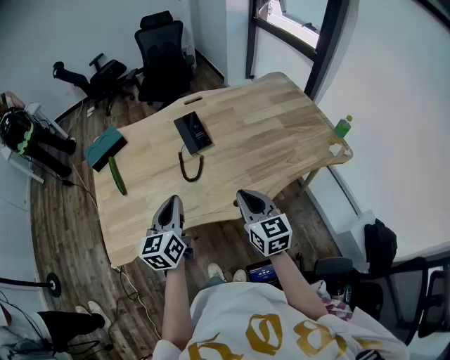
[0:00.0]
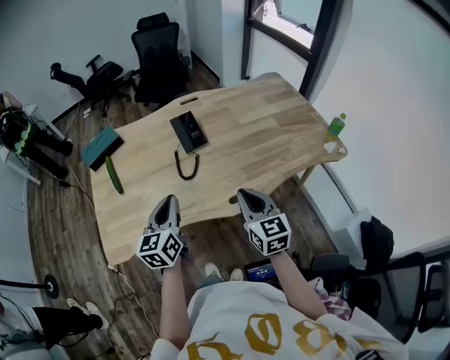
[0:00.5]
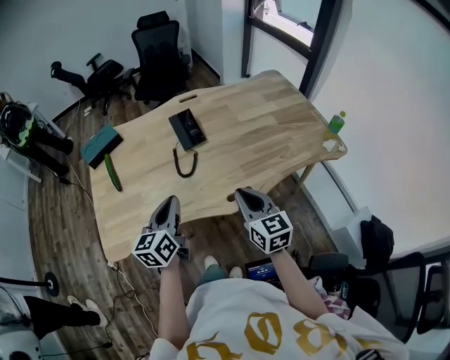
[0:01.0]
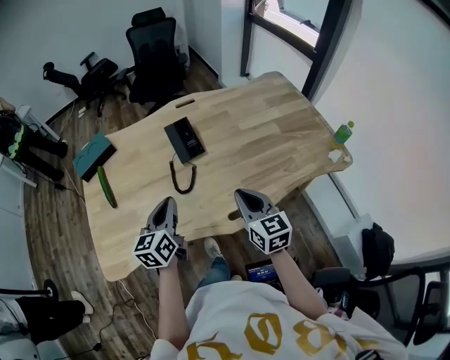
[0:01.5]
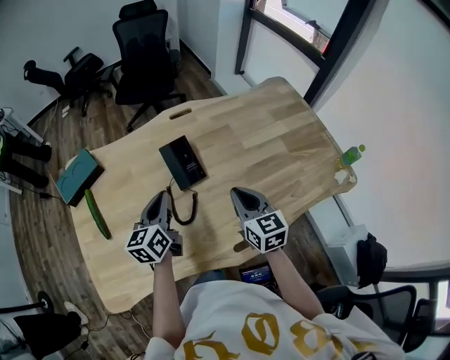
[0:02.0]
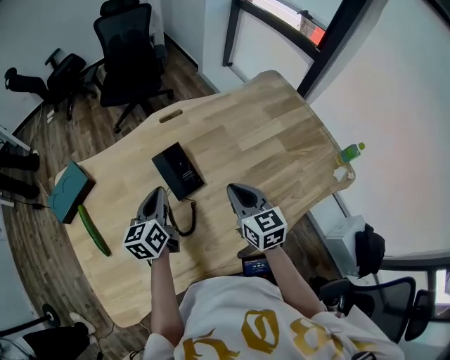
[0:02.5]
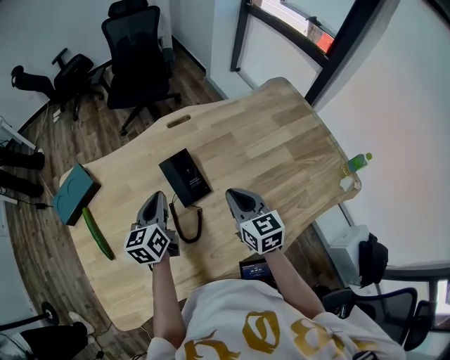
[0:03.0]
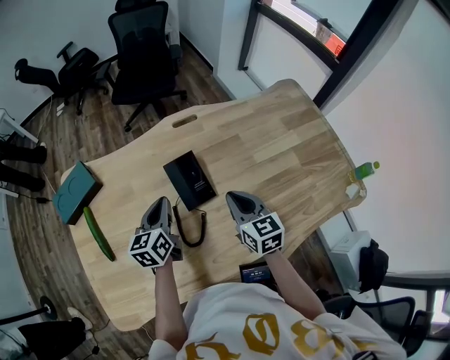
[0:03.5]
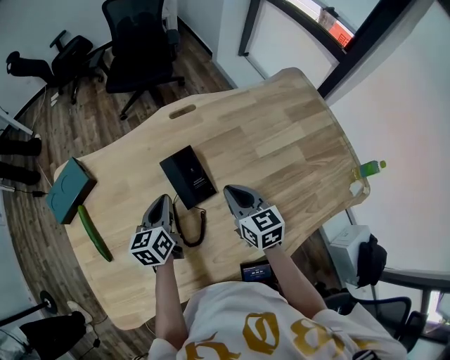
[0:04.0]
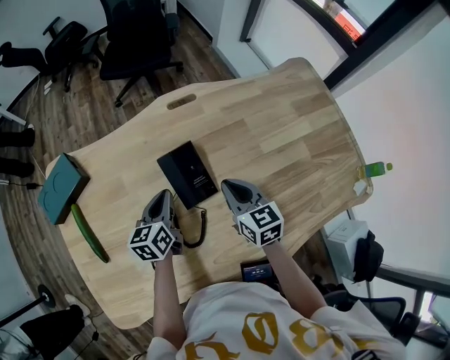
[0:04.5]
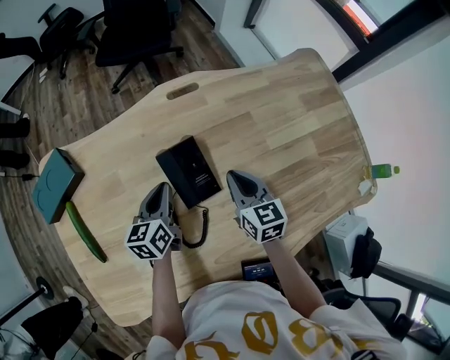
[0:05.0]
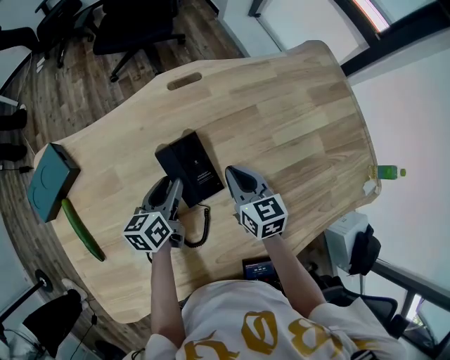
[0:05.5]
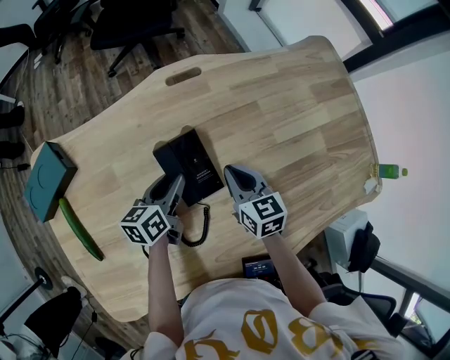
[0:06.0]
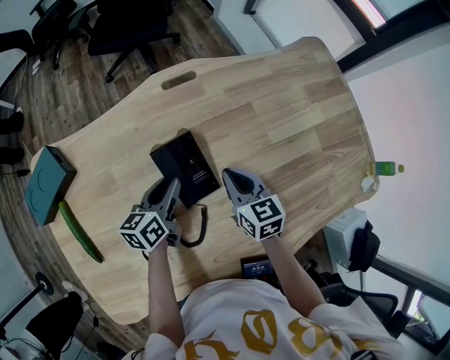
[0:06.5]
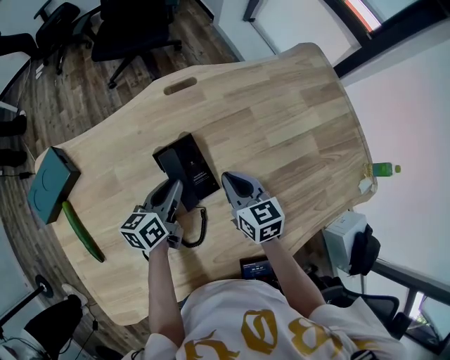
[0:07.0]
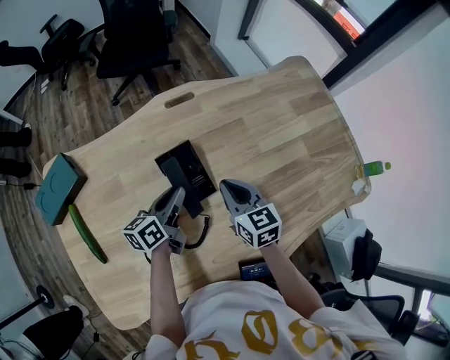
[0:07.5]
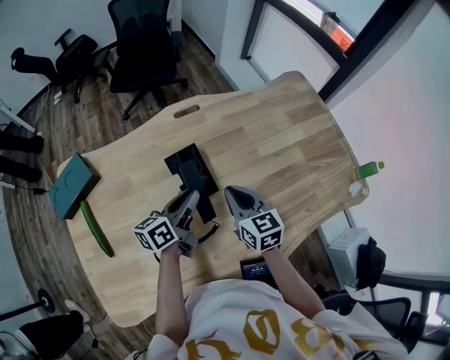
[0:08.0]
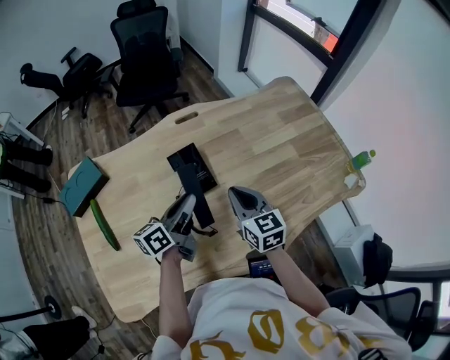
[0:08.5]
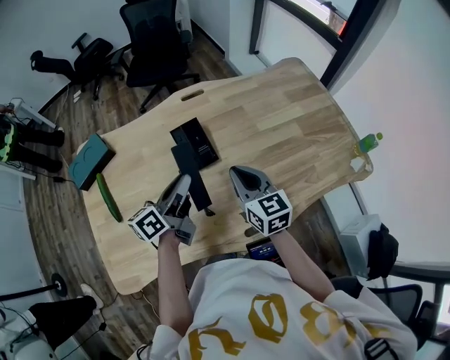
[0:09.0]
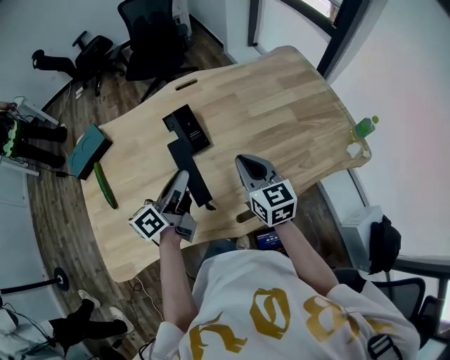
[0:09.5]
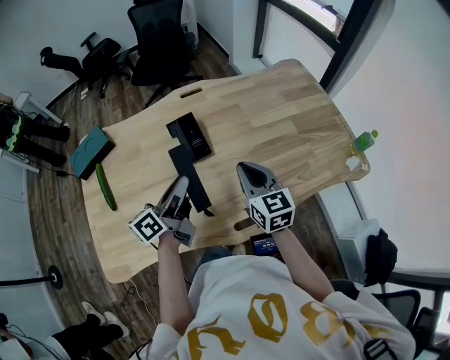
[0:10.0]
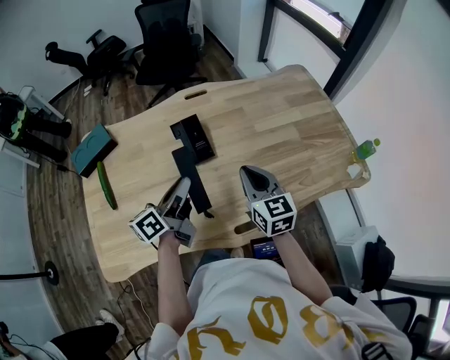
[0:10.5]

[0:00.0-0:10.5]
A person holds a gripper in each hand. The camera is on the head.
0:00.0 to 0:02.0: The two grippers go approximately 20 cm forward.
0:02.0 to 0:04.0: Both grippers travel together forward and downward, about 10 cm.
0:04.0 to 0:06.5: The two grippers go approximately 5 cm downward. The left gripper opens.
0:06.5 to 0:08.5: Both grippers move upward and backward, about 15 cm. The left gripper swivels approximately 20 degrees.
0:08.5 to 0:10.5: The right gripper shifts about 5 cm to the right; the left gripper moves backward, some 5 cm.

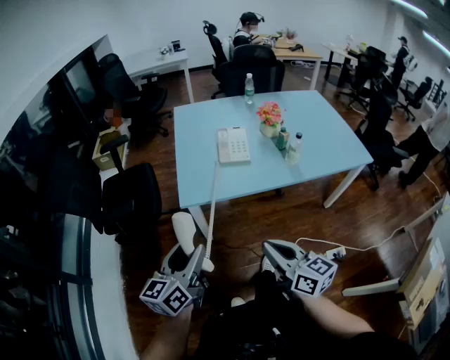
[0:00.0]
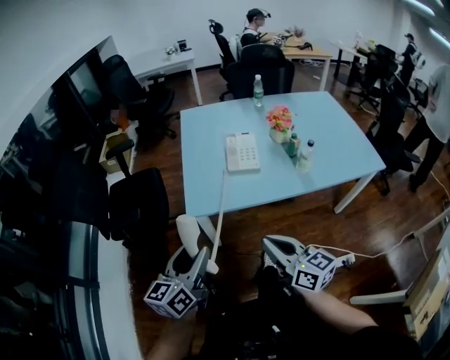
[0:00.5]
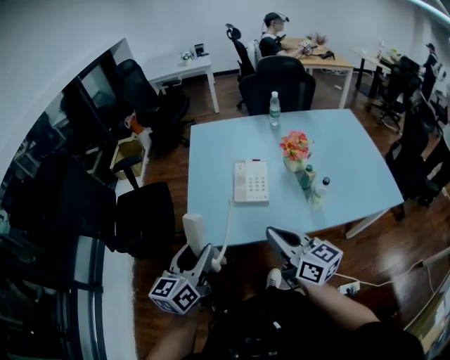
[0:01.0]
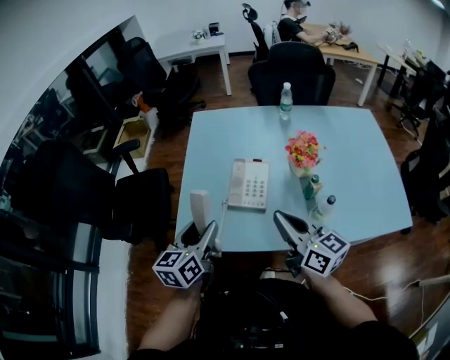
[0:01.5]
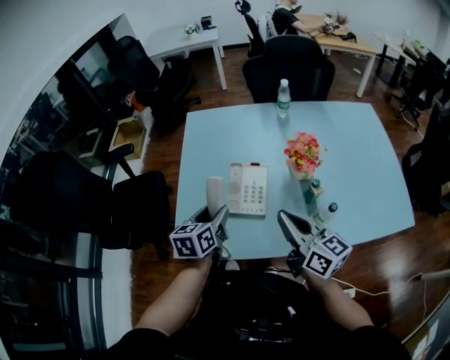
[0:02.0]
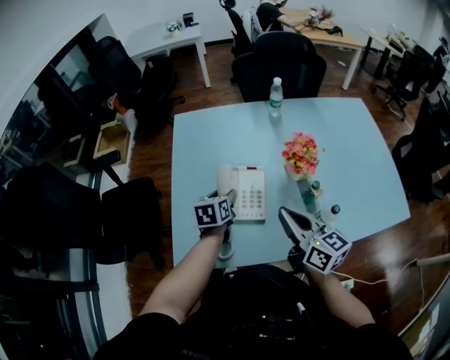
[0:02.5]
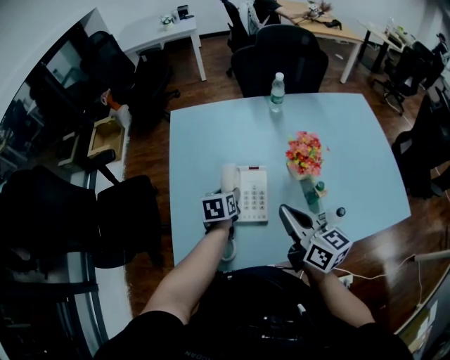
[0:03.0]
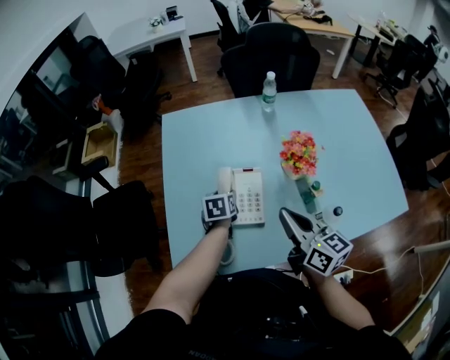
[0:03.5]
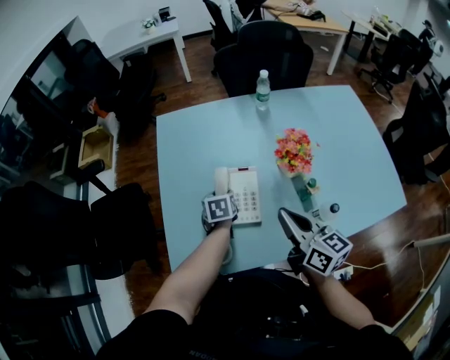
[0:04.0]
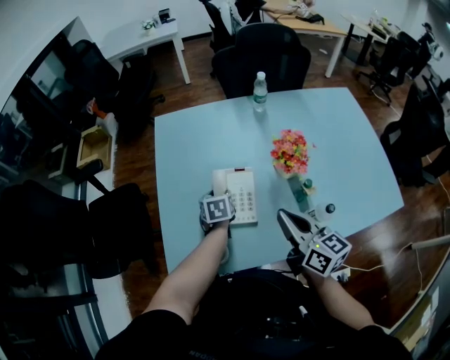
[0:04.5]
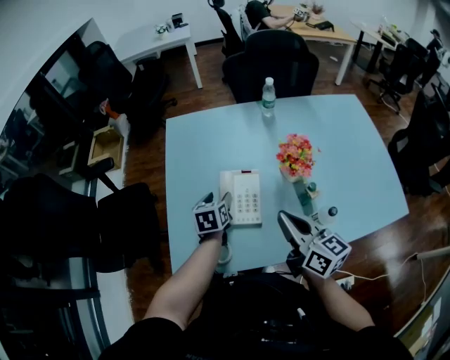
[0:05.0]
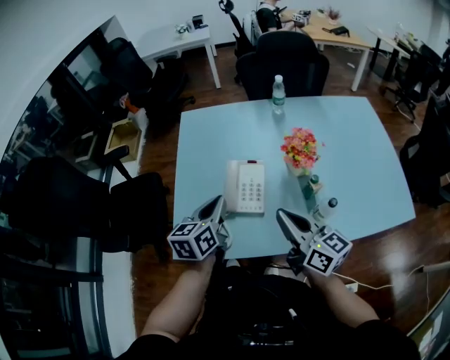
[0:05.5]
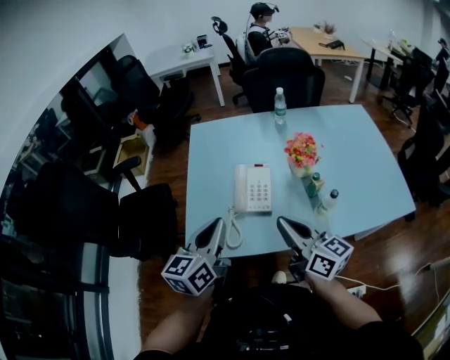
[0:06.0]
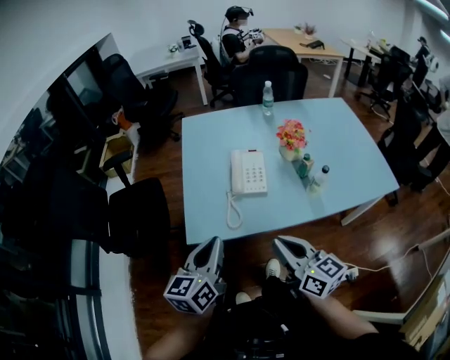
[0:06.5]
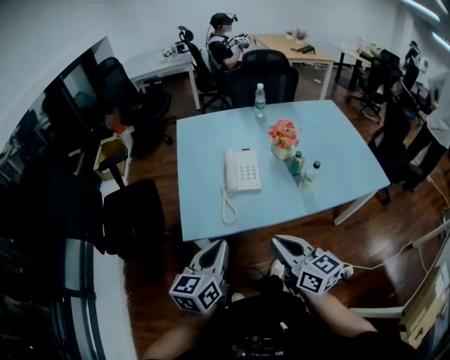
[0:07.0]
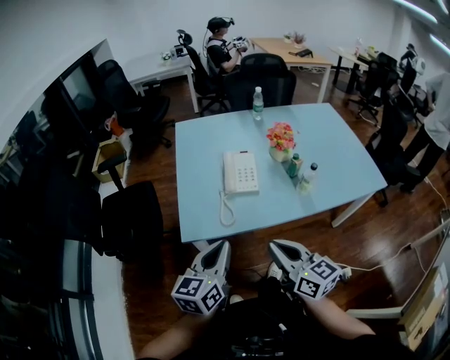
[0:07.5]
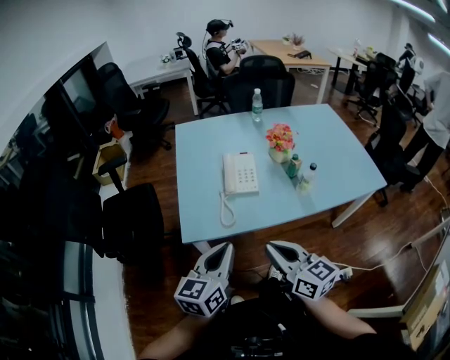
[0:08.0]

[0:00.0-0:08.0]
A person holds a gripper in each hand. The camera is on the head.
0:00.0 to 0:02.0: The pair of grippers is taken forward and to the right, approximately 40 cm. The left gripper swivels about 30 degrees.
0:02.0 to 0:04.0: The left gripper shifts roughly 20 cm downward and forward, and swivels some 20 degrees. Meanwhile the right gripper heads forward, covering about 5 cm.
0:04.0 to 0:06.0: The left gripper travels upward and backward by about 35 cm, points its fingers roughly 40 degrees further upward, and closes up. Meanwhile the right gripper travels backward by approximately 10 cm.
0:06.0 to 0:08.0: The left gripper heads backward, covering about 15 cm; the right gripper shifts some 20 cm backward and to the left.

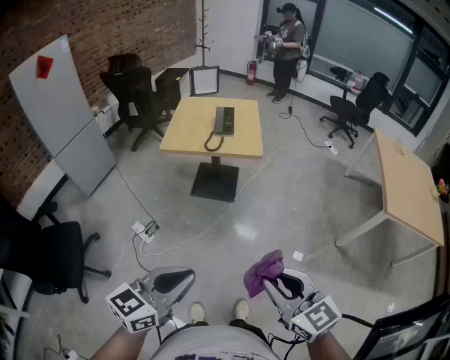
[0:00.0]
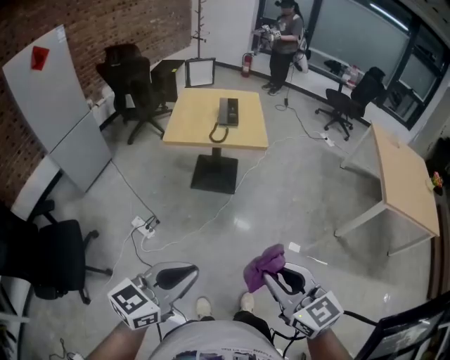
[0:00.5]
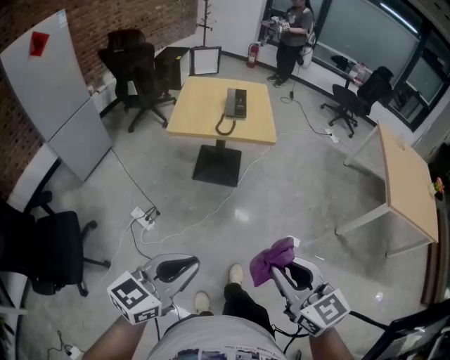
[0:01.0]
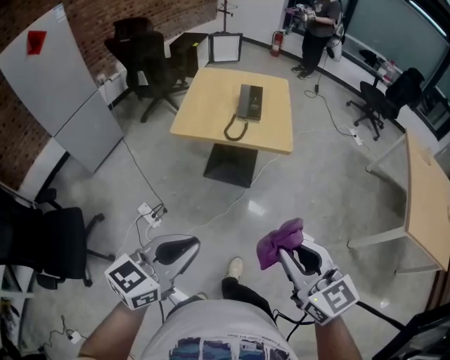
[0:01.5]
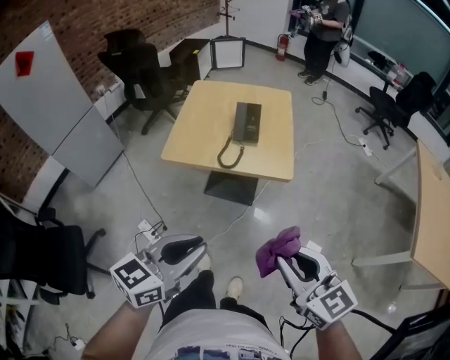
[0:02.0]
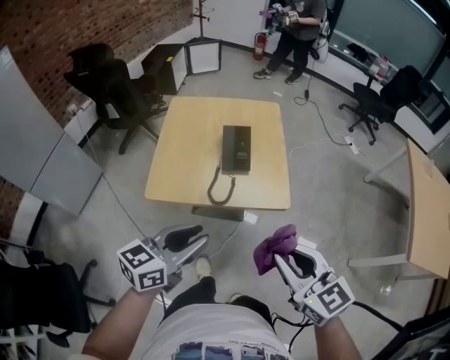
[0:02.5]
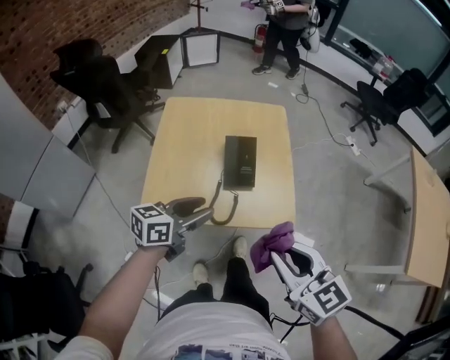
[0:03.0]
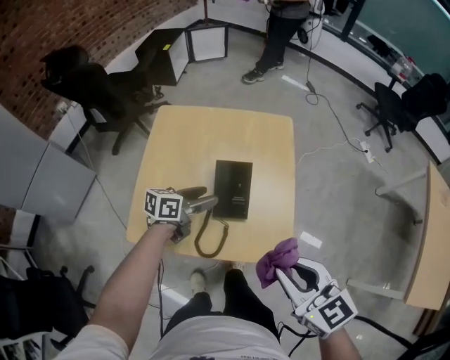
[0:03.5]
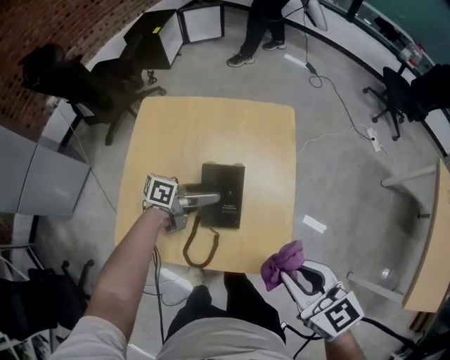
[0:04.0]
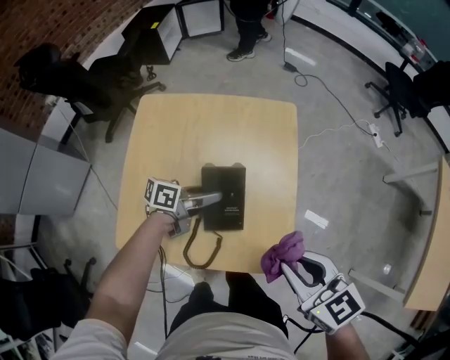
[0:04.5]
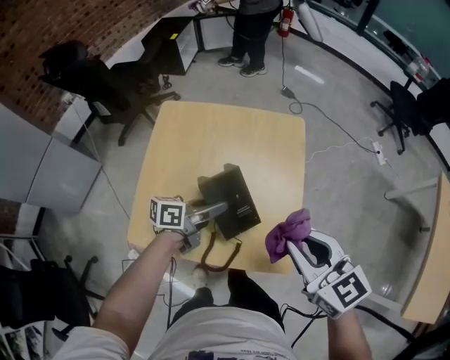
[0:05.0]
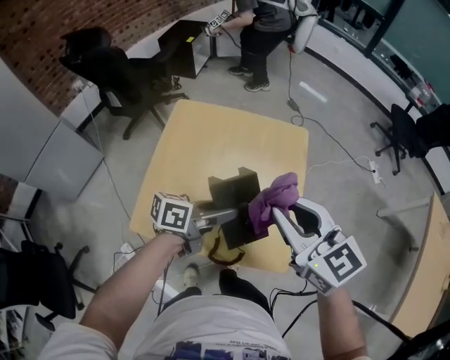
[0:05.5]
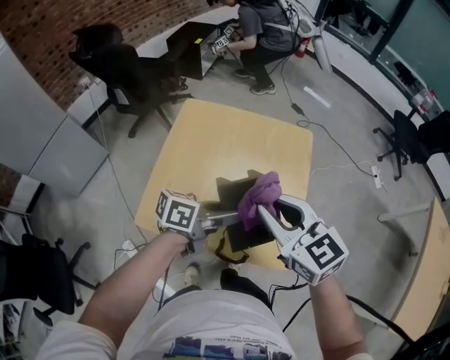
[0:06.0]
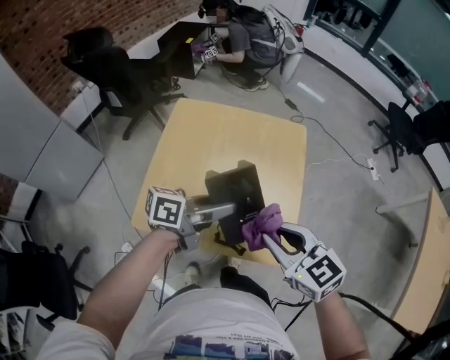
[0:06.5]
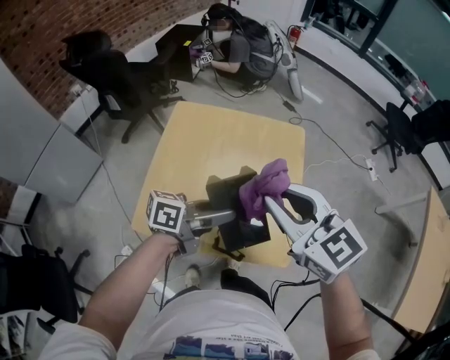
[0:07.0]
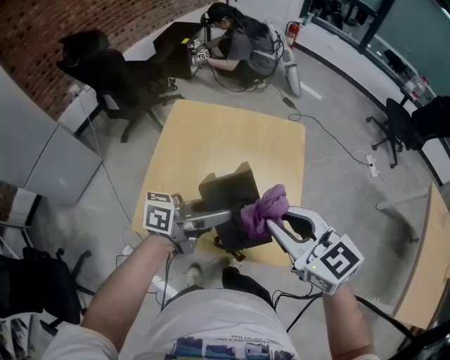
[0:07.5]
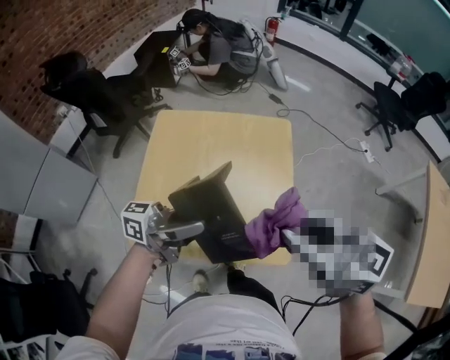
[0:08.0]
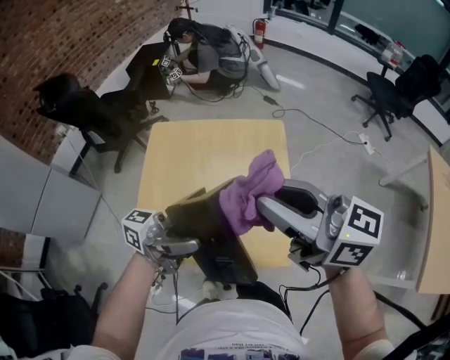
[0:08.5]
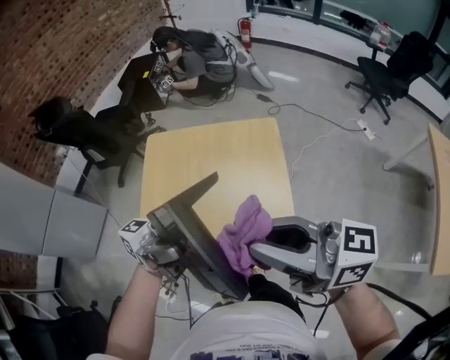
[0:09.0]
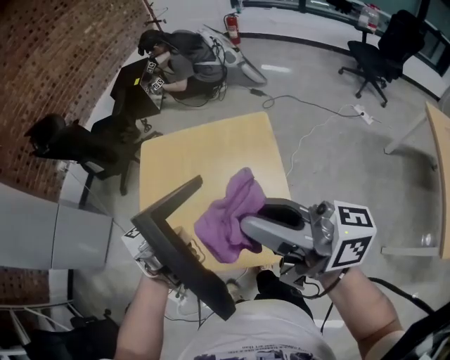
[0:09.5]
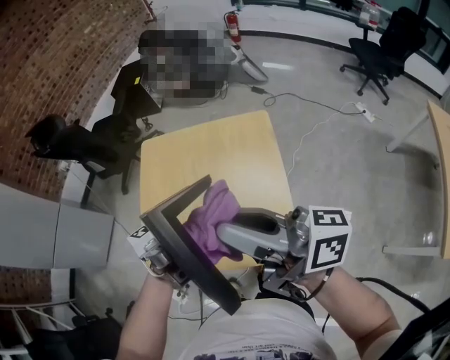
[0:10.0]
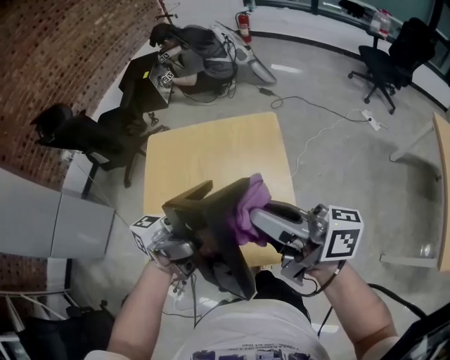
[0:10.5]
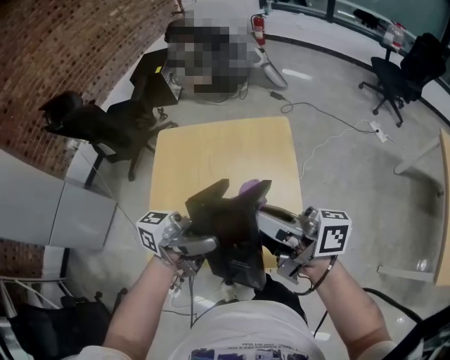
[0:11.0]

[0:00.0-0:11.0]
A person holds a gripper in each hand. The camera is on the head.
0:00.0 to 0:02.0: The grippers both shift forward by some 30 cm.
0:02.0 to 0:03.5: The left gripper heads forward and downward, covering about 50 cm, changes its angle by roughly 30 degrees, and opens, while the right gripper moves forward, some 30 cm.
0:03.5 to 0:05.5: The right gripper moves forward, to the left and upward, roughly 15 cm. Meanwhile the left gripper travels upward and to the right by approximately 10 cm.
0:05.5 to 0:07.5: The left gripper is displaced upward by about 5 cm. Meanwhile the right gripper moves up and down over some 10 cm, changing direction 2 times.
0:07.5 to 0:09.0: The grippers both shift upward by roughly 10 cm. The right gripper turns by roughly 40 degrees. Meanwhile the left gripper tips its fingers upward by some 40 degrees.
0:09.0 to 0:11.0: The right gripper goes approximately 5 cm downward, and swivels roughly 30 degrees; the left gripper changes place by about 5 cm.
